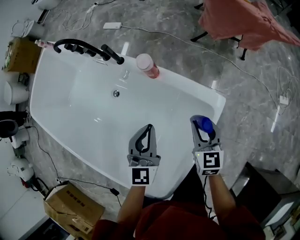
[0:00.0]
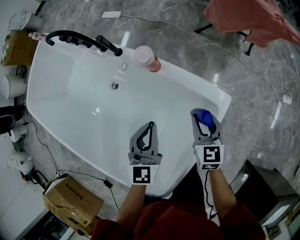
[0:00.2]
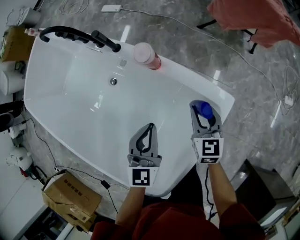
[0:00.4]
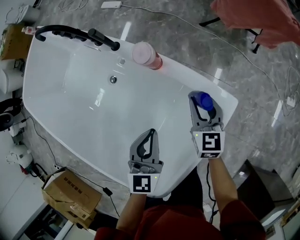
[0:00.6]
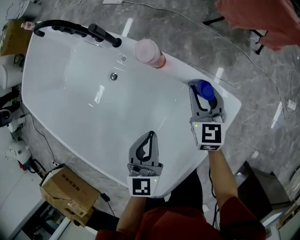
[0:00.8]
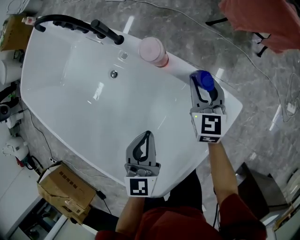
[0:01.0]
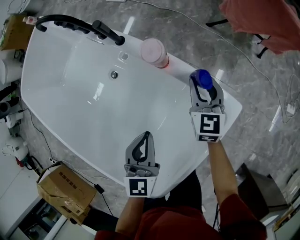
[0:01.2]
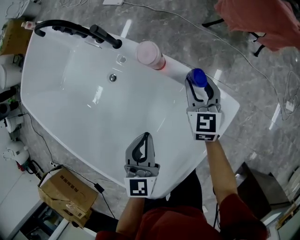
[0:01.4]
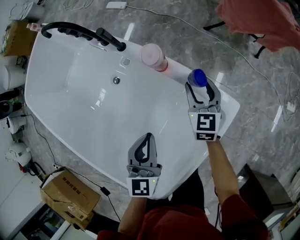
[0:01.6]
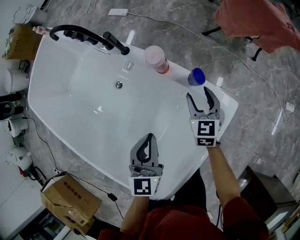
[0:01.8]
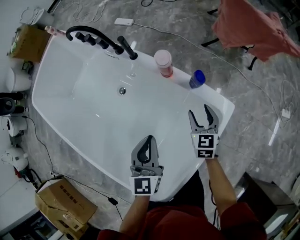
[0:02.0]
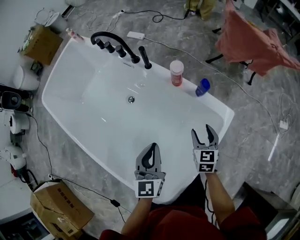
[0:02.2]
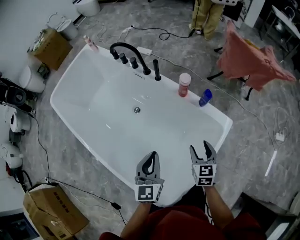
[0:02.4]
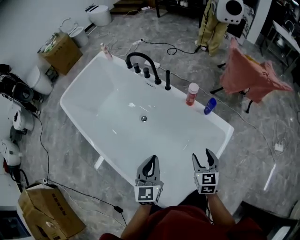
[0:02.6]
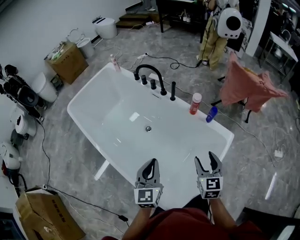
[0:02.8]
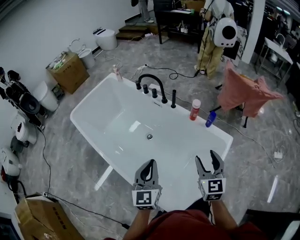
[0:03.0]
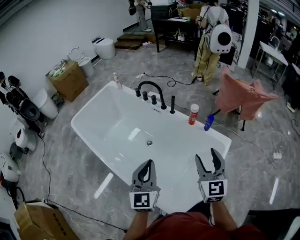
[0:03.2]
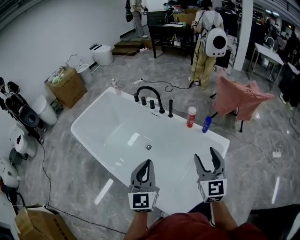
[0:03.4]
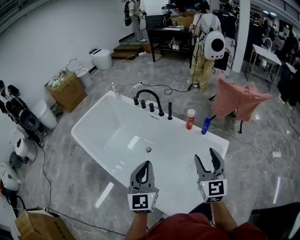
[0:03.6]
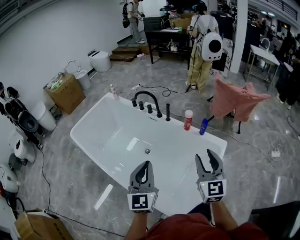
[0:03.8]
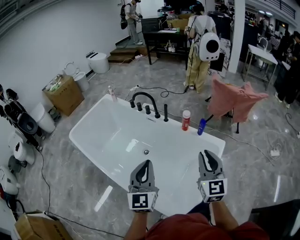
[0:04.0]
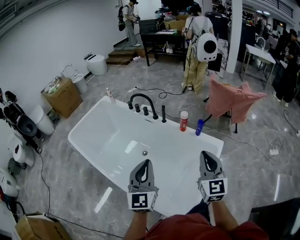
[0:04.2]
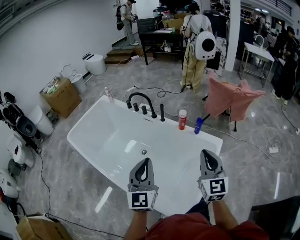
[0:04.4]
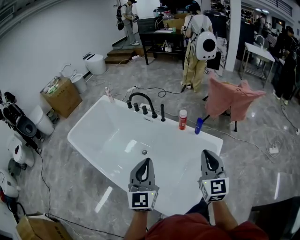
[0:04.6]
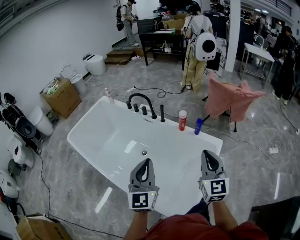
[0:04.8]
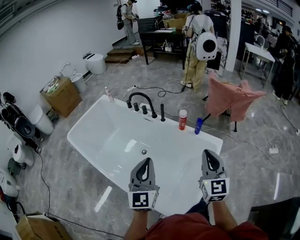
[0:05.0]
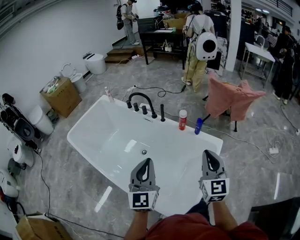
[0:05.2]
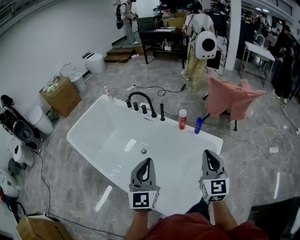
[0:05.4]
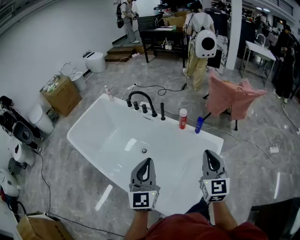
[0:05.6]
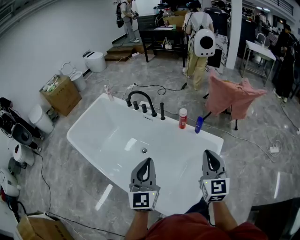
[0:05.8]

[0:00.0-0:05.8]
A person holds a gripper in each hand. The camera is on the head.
0:00.0 to 0:01.4: The left gripper heads downward, covering approximately 5 cm; the right gripper goes about 20 cm forward and downward.
0:01.4 to 0:02.8: The right gripper moves backward, upward and to the left, roughly 40 cm; the left gripper is displaced to the left, upward and backward by approximately 35 cm.
0:02.8 to 0:04.4: Both grippers move upward, some 15 cm. The right gripper swivels about 20 degrees, and closes up.
0:04.4 to 0:05.8: The grippers make only small movements.

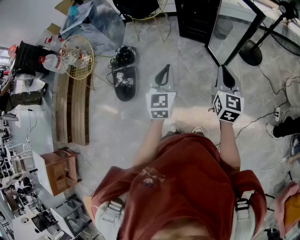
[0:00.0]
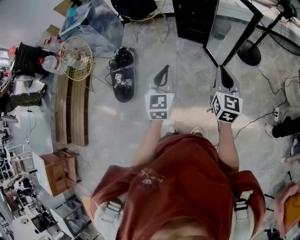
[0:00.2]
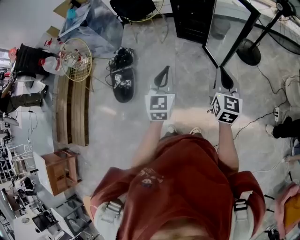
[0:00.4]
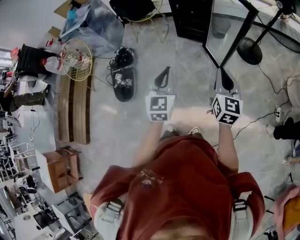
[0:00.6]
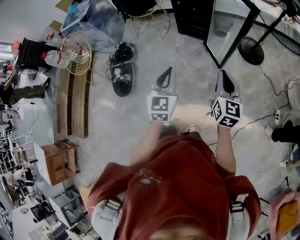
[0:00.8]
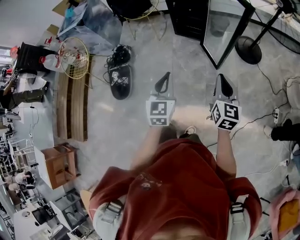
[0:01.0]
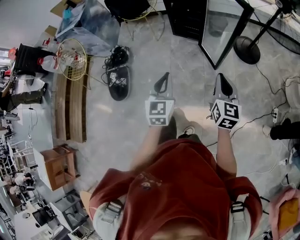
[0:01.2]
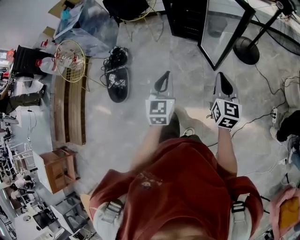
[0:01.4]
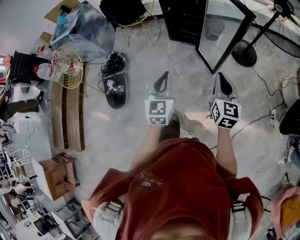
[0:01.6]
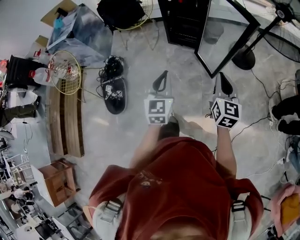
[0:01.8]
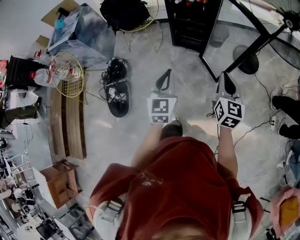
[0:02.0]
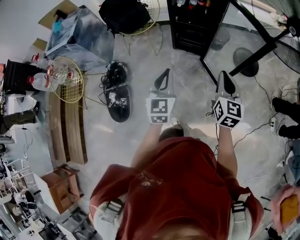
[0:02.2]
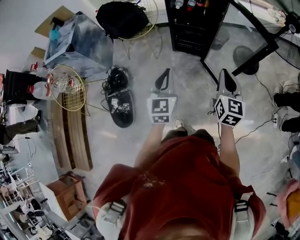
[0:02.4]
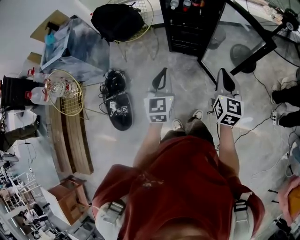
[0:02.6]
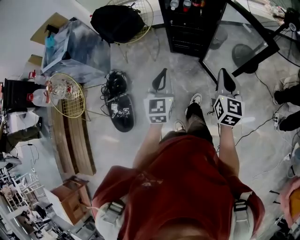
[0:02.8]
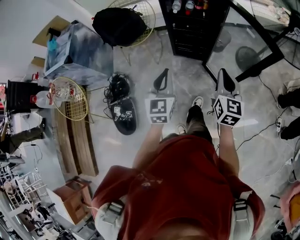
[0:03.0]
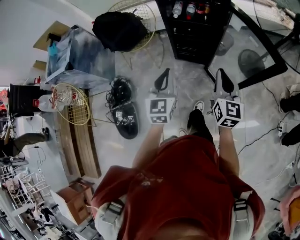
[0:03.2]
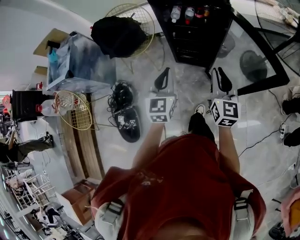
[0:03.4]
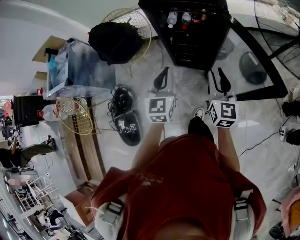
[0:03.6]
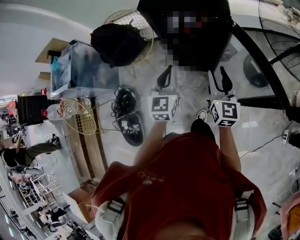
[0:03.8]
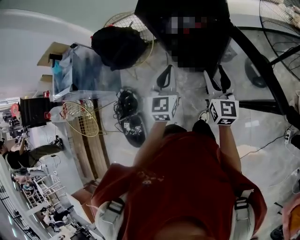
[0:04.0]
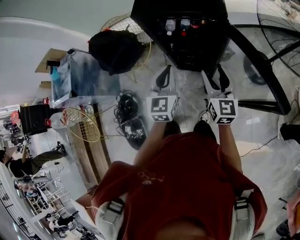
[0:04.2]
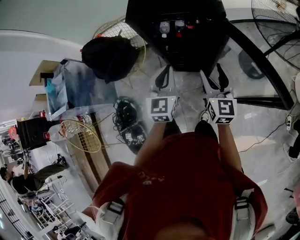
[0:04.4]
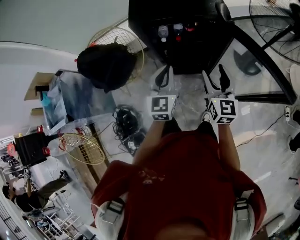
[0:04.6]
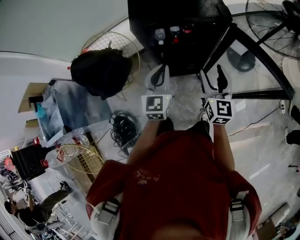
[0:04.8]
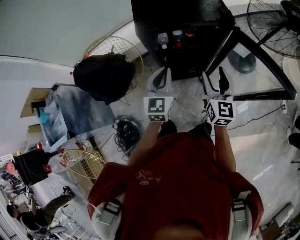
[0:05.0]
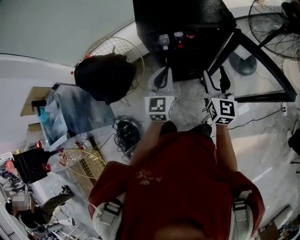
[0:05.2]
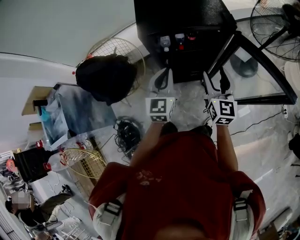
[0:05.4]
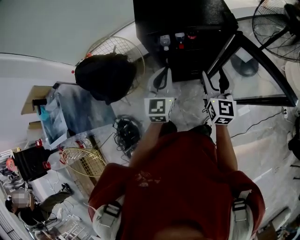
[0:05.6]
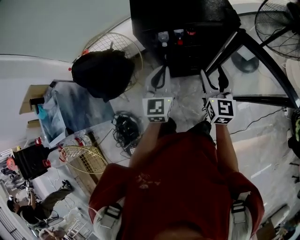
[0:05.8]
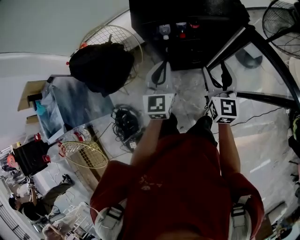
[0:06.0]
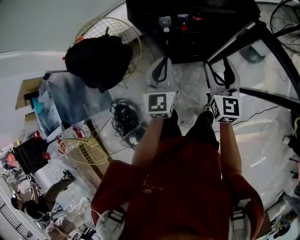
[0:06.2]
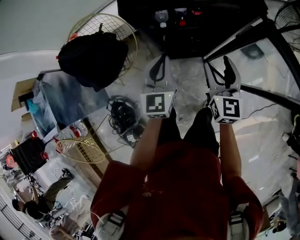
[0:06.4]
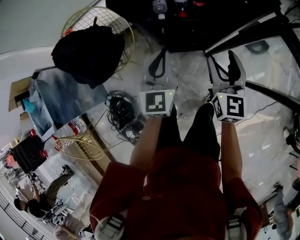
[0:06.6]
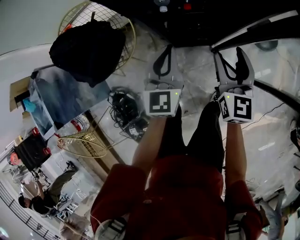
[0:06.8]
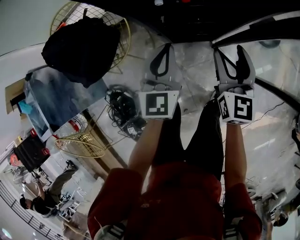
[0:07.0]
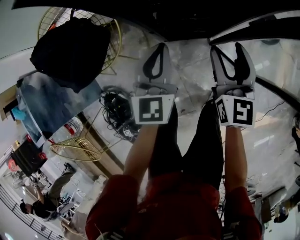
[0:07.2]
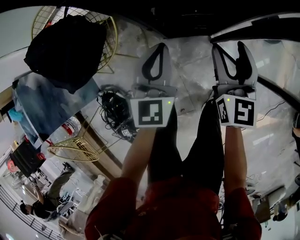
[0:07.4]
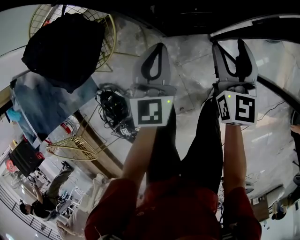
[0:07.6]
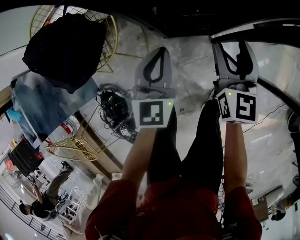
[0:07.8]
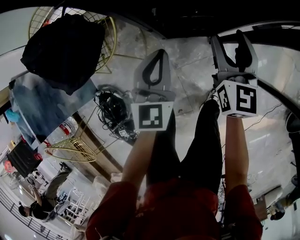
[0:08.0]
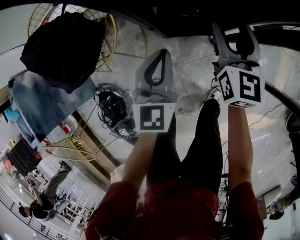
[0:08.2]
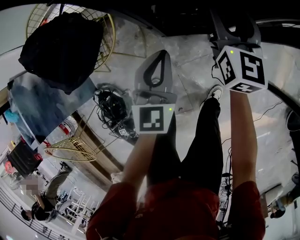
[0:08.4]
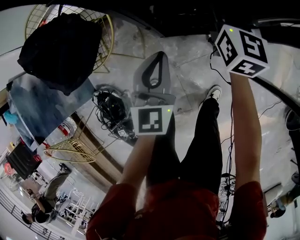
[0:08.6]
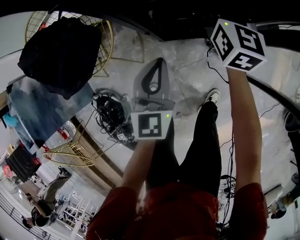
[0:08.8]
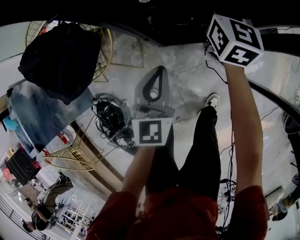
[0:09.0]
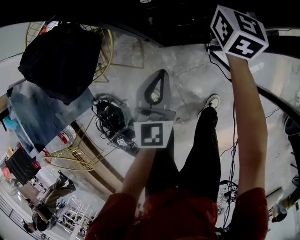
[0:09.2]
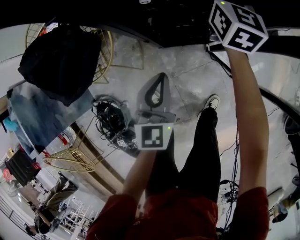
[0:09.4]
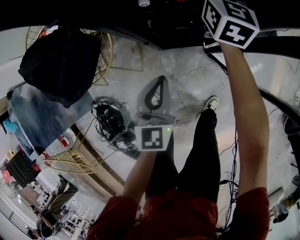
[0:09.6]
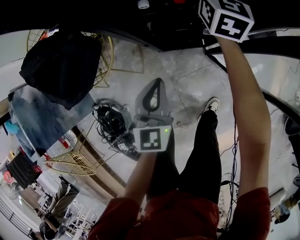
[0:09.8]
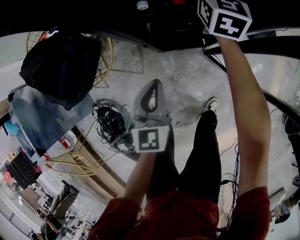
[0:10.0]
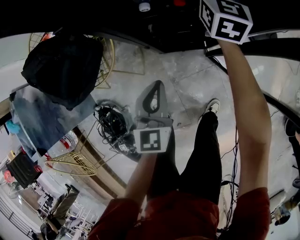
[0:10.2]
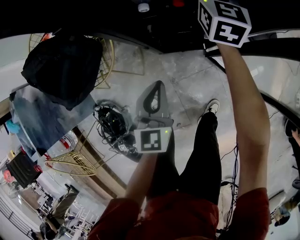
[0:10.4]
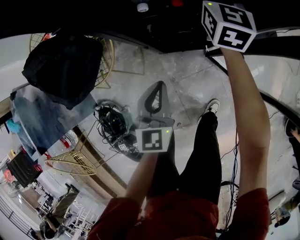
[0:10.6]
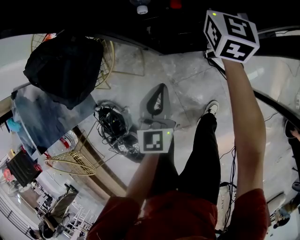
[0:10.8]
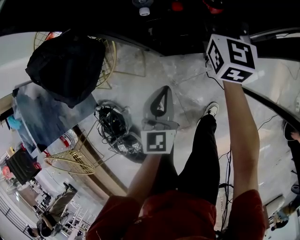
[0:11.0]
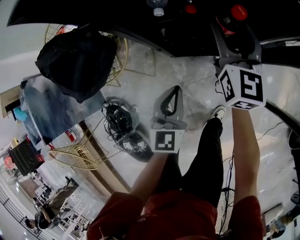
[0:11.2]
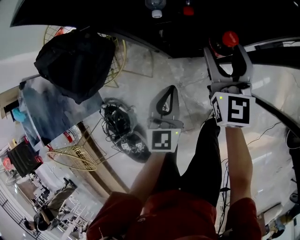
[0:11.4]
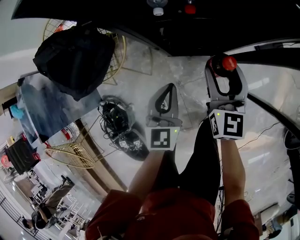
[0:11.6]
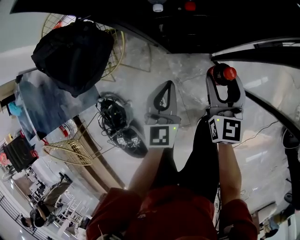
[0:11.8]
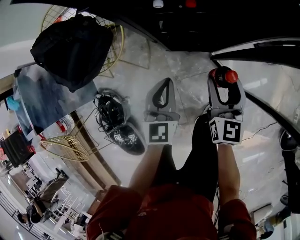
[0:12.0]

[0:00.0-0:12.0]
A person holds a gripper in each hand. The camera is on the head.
0:00.0 to 0:01.6: Both grippers move to the right and forward, about 15 cm.
0:01.6 to 0:03.0: Both grippers move forward and to the left, approximately 35 cm.
0:03.0 to 0:04.4: Both grippers travel together forward, approximately 30 cm. The right gripper opens its fingers.
0:04.4 to 0:06.0: Both grippers move to the left and forward, some 10 cm.
0:06.0 to 0:07.6: The grippers both shift downward by about 25 cm.
0:07.6 to 0:09.0: The right gripper shifts about 20 cm forward.
0:09.0 to 0:10.4: The right gripper is displaced forward by roughly 5 cm.
0:10.4 to 0:12.0: The right gripper travels backward by about 25 cm.

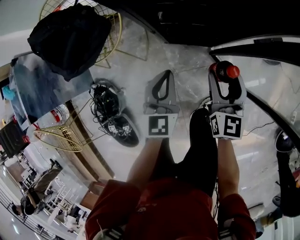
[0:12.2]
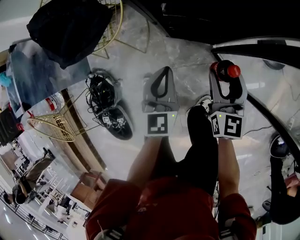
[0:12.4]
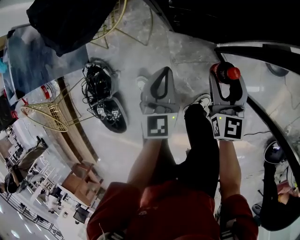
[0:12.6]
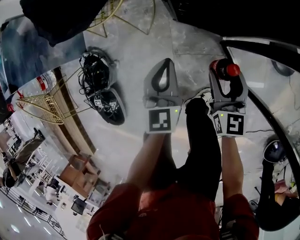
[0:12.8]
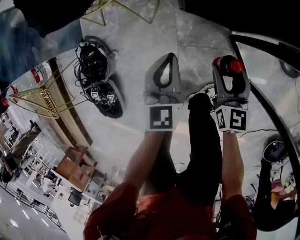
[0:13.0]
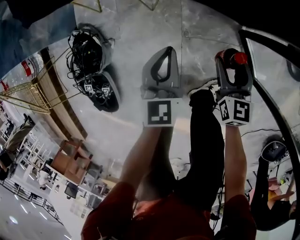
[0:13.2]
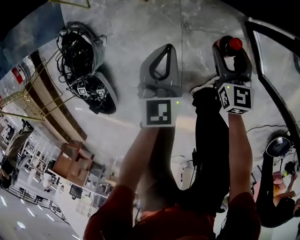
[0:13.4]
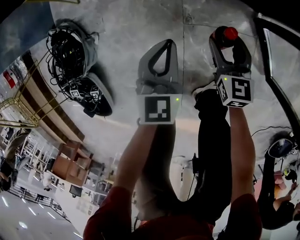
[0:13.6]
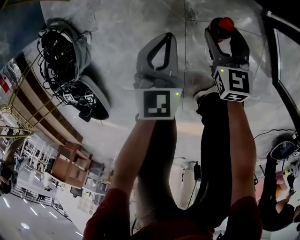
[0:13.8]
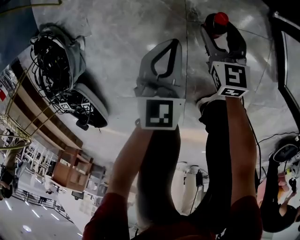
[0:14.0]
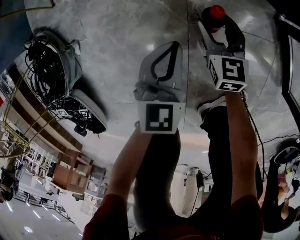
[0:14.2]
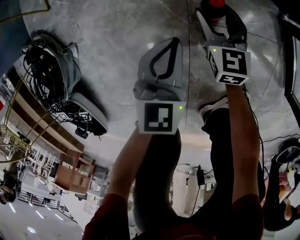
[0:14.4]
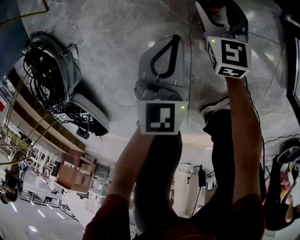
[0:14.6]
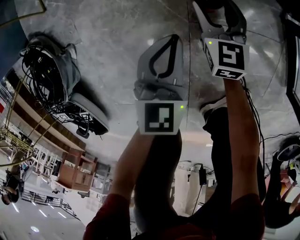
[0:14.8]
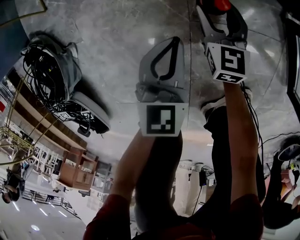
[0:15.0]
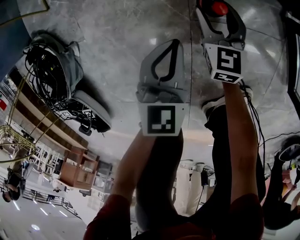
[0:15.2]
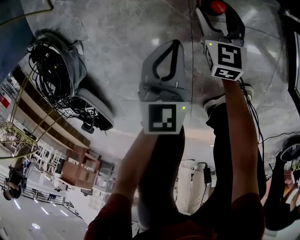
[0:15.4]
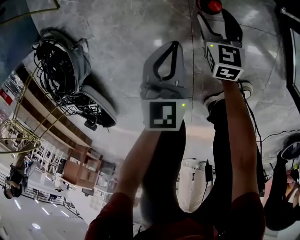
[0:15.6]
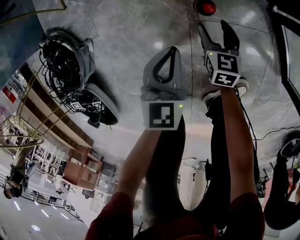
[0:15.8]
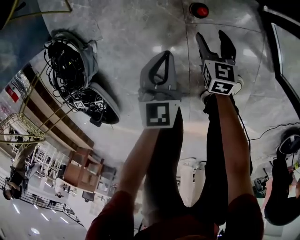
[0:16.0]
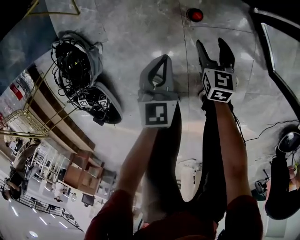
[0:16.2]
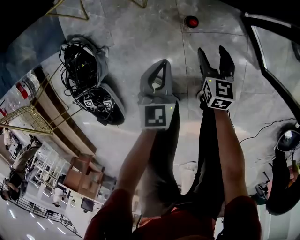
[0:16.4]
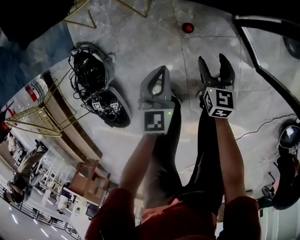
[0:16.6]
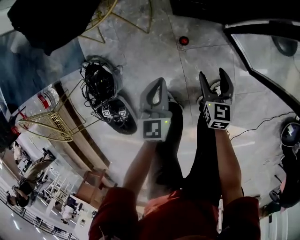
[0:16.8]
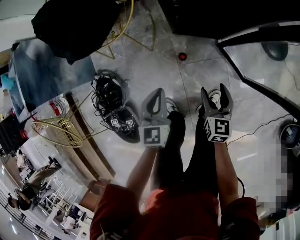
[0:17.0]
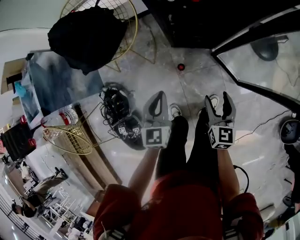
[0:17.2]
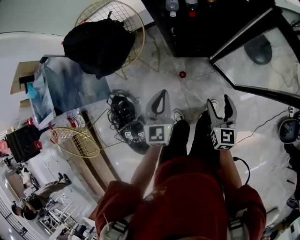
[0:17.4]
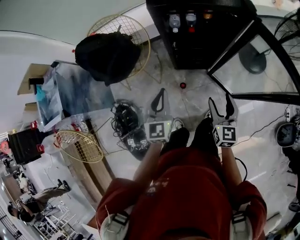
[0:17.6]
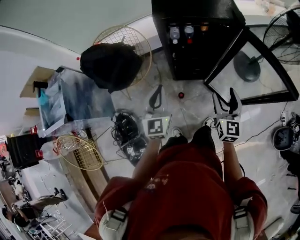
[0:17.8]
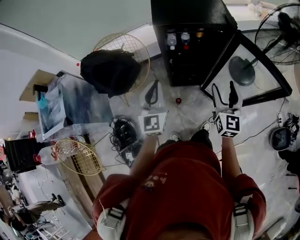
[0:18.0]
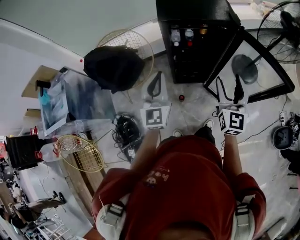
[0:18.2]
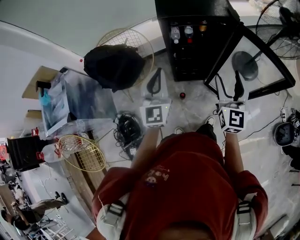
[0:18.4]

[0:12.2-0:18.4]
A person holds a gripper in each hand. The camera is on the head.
0:12.2 to 0:13.8: Both grippers travel together downward, some 50 cm. The right gripper rotates approximately 30 degrees.
0:13.8 to 0:15.4: Both grippers move downward, approximately 10 cm.
0:15.4 to 0:16.8: The two grippers go roughly 40 cm upward.
0:16.8 to 0:18.4: The two grippers go some 60 cm upward. The left gripper tips its fingers upward by some 30 degrees, while the right gripper points its fingers approximately 40 degrees further upward.
